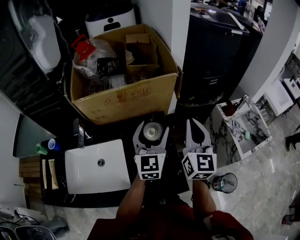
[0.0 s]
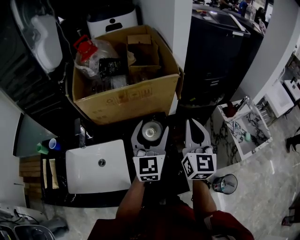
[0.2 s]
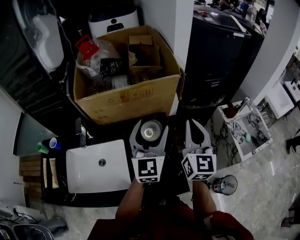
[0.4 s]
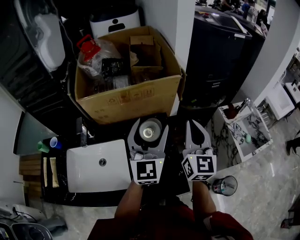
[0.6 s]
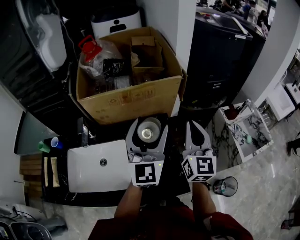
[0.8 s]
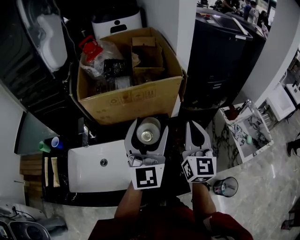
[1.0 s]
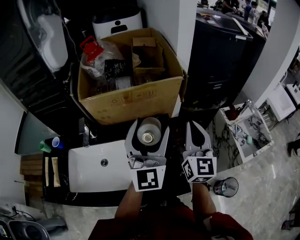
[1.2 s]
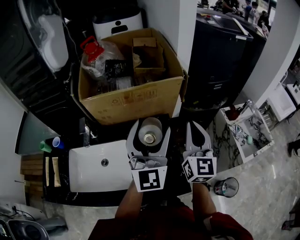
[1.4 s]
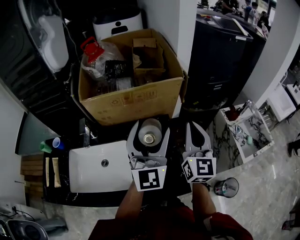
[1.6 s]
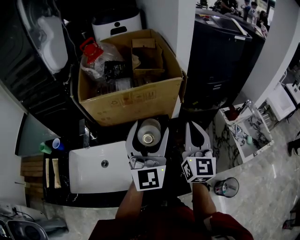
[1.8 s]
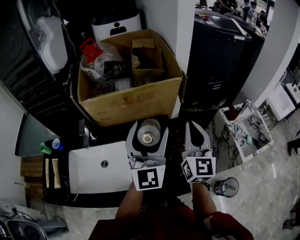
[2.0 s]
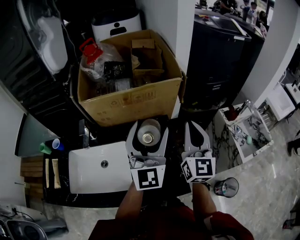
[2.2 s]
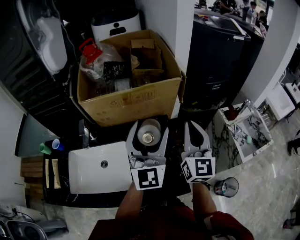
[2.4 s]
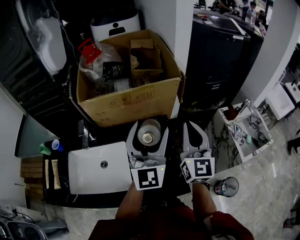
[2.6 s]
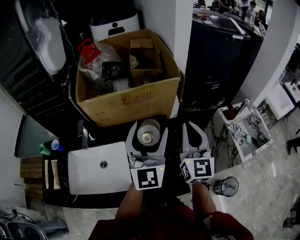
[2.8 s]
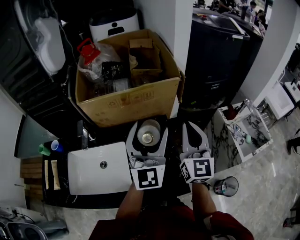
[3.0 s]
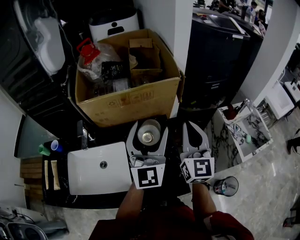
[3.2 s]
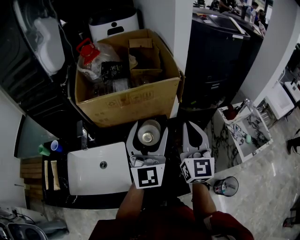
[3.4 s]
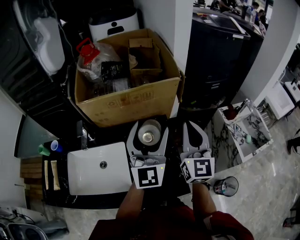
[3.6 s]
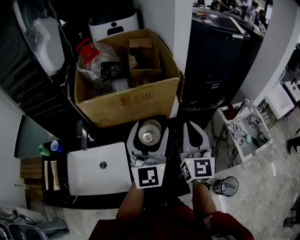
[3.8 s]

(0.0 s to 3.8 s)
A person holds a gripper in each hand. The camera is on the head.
0.0 s - 1.2 s: The left gripper travels upward and backward by some 10 cm, and changes its angle by approximately 20 degrees.
1.2 s - 2.6 s: Neither gripper changes place.
2.6 s - 3.8 s: The grippers move only a little.

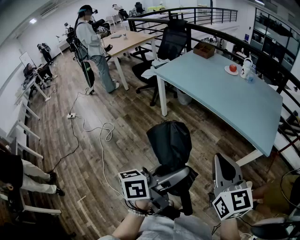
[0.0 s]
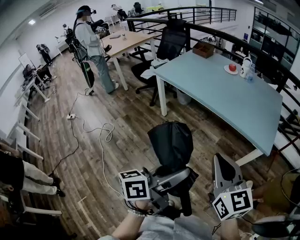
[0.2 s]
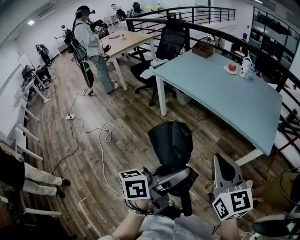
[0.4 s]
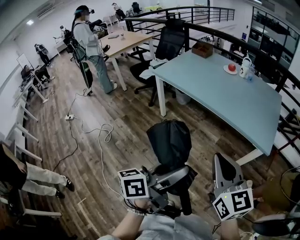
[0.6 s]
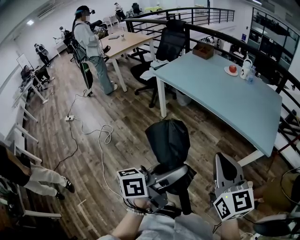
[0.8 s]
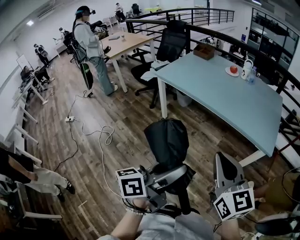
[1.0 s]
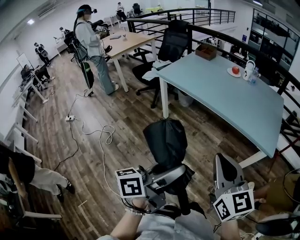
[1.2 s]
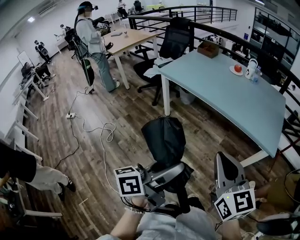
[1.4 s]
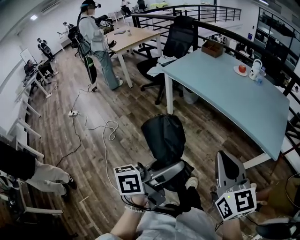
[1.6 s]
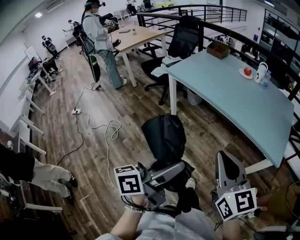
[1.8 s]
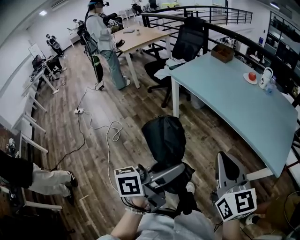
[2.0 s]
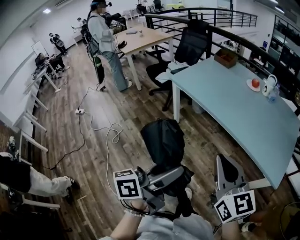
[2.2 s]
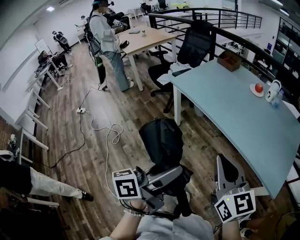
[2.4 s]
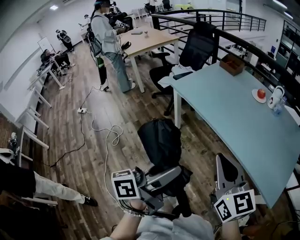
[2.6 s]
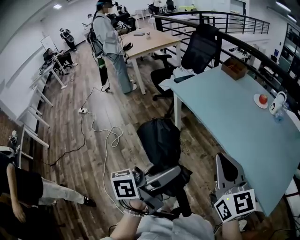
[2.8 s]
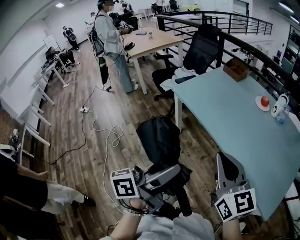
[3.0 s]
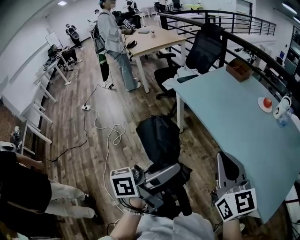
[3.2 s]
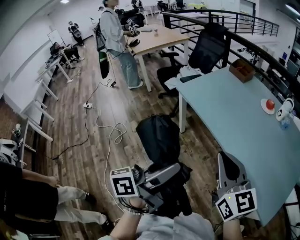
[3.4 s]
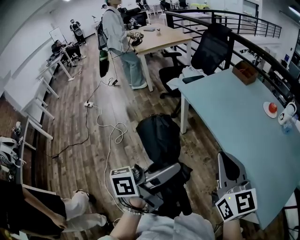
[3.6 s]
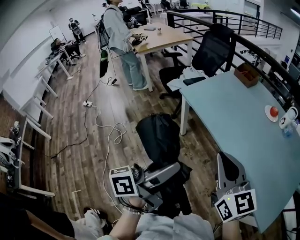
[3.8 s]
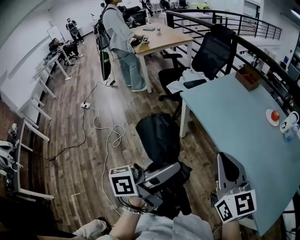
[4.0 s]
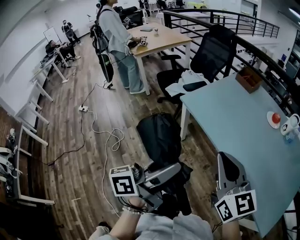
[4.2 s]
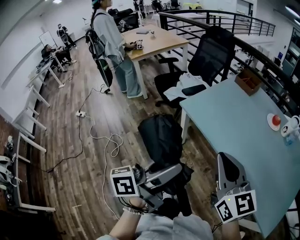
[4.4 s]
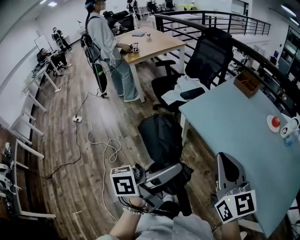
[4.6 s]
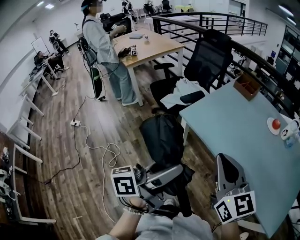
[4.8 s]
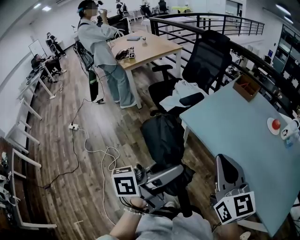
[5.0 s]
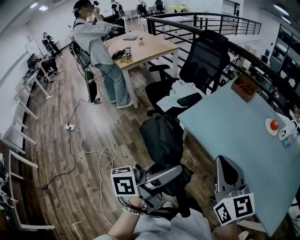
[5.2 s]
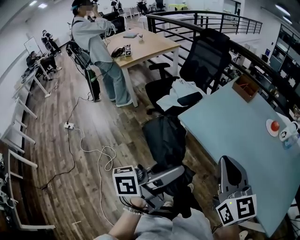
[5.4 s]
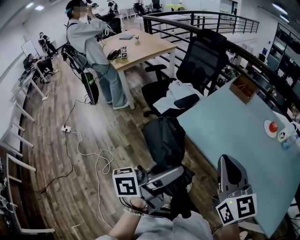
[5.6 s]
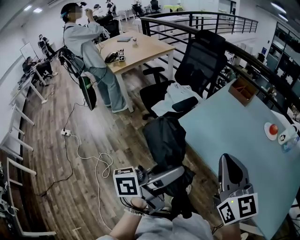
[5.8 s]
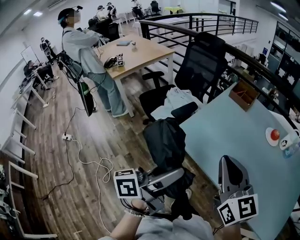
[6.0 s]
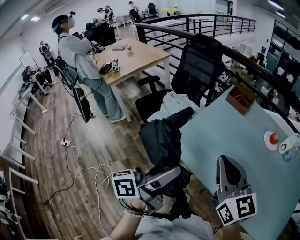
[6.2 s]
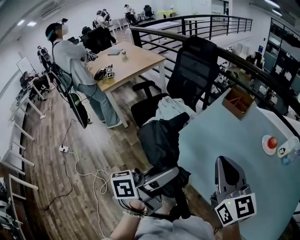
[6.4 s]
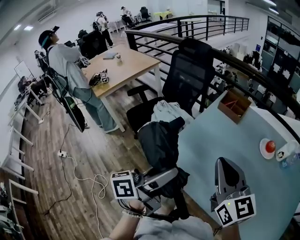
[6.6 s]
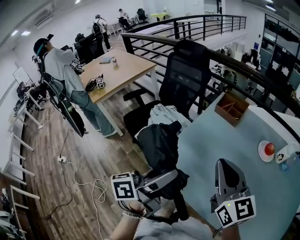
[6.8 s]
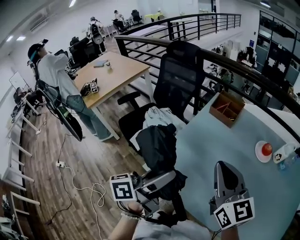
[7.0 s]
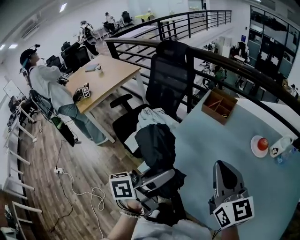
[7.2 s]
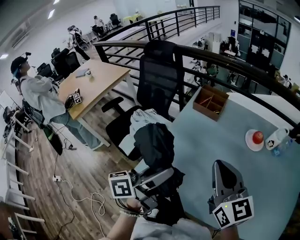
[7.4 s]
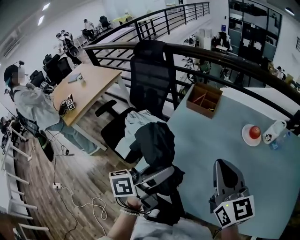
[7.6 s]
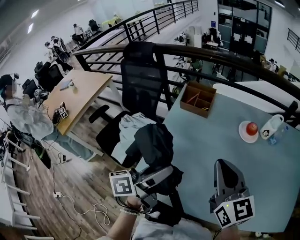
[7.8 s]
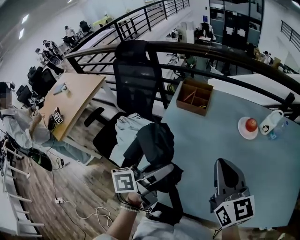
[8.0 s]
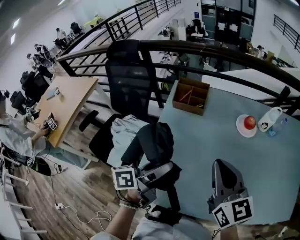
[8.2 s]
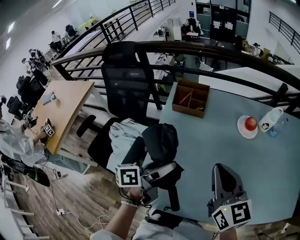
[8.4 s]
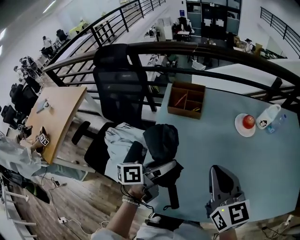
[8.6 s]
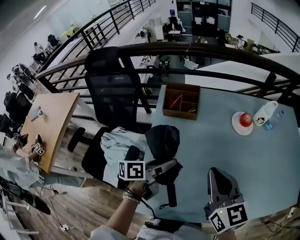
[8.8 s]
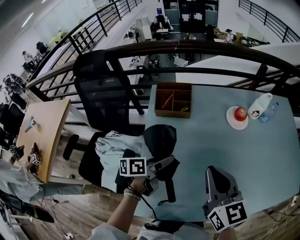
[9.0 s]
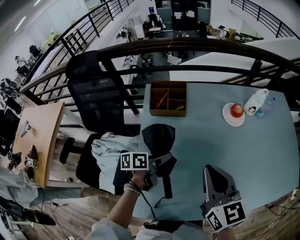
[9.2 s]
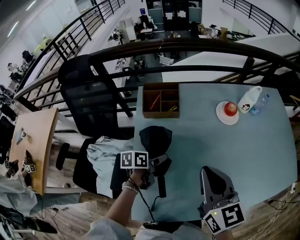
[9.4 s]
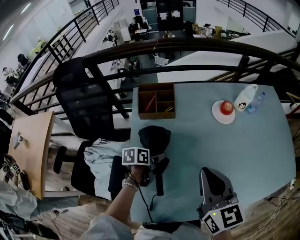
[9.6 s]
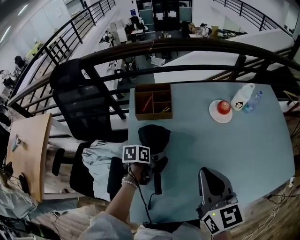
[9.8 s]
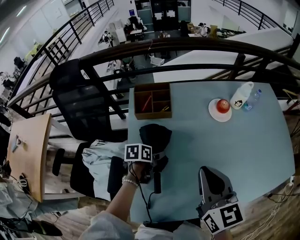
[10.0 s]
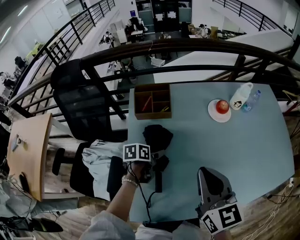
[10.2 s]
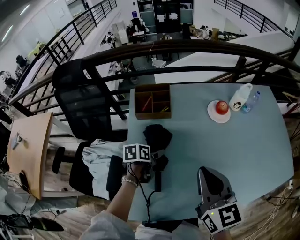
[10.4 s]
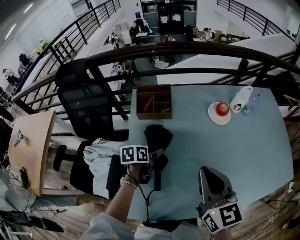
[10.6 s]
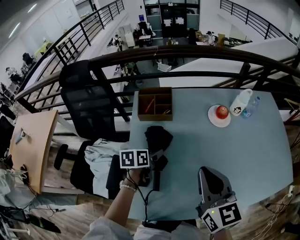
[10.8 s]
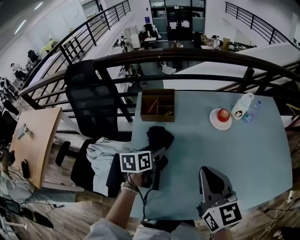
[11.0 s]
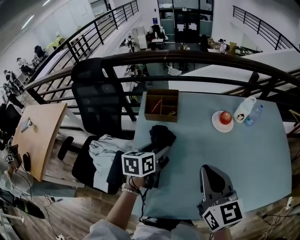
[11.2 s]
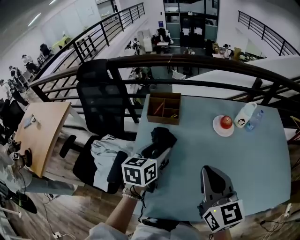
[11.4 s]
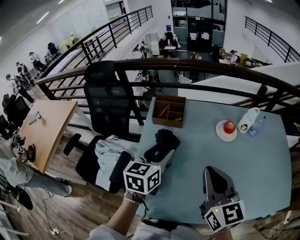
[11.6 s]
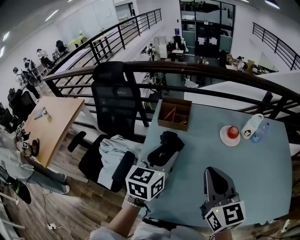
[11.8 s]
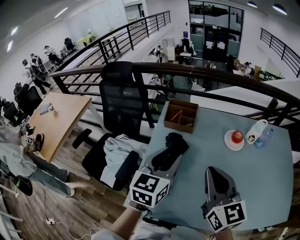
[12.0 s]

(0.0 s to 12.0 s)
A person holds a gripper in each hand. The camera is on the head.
0.0 s - 1.6 s: Both grippers move to the left, about 10 cm.
1.6 s - 3.0 s: Both grippers move forward, some 25 cm.
3.0 s - 4.4 s: Both grippers travel together forward and to the left, about 20 cm.
4.4 s - 6.0 s: Both grippers travel together forward, some 15 cm.
6.0 s - 7.6 s: The left gripper shifts approximately 25 cm forward. Meanwhile the right gripper is displaced forward and to the right by approximately 25 cm.
7.6 s - 9.0 s: The left gripper heads downward and forward, covering approximately 25 cm, and changes its angle by roughly 40 degrees, while the right gripper shifts some 10 cm downward and forward, and rotates approximately 20 degrees.
9.0 s - 10.4 s: The left gripper travels downward by some 10 cm, and changes its angle by roughly 30 degrees.
10.4 s - 12.0 s: The left gripper is displaced upward by roughly 30 cm, tilts its fingers approximately 30 degrees upward, and closes, while the right gripper shifts approximately 5 cm upward.

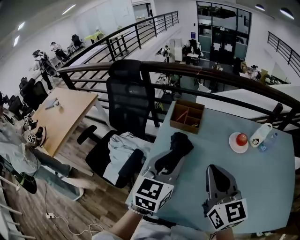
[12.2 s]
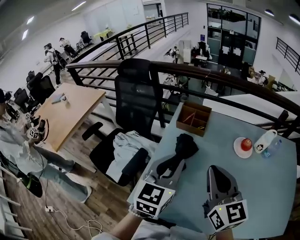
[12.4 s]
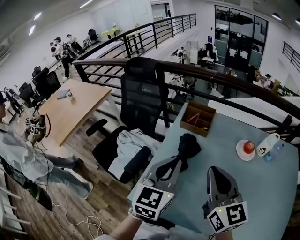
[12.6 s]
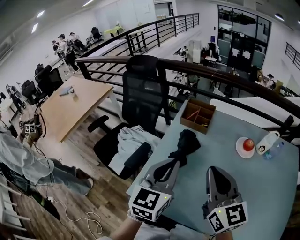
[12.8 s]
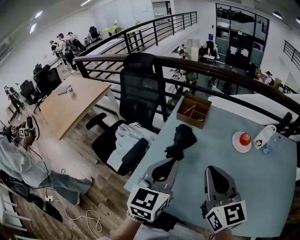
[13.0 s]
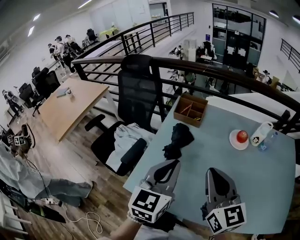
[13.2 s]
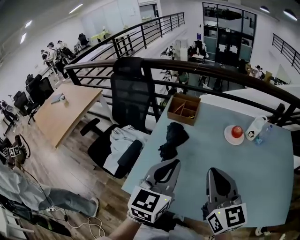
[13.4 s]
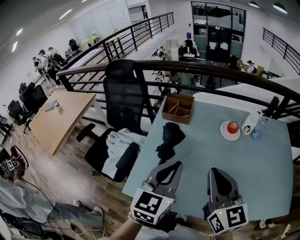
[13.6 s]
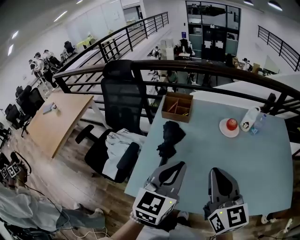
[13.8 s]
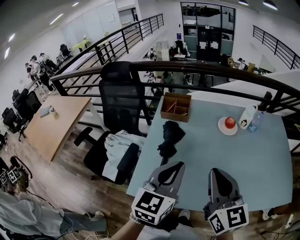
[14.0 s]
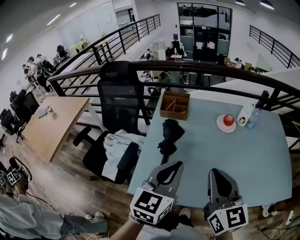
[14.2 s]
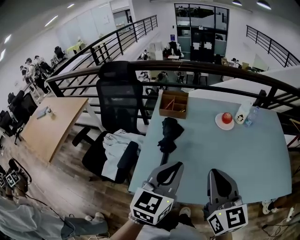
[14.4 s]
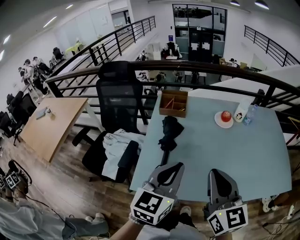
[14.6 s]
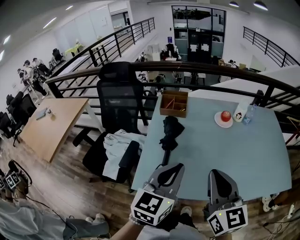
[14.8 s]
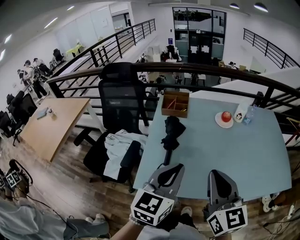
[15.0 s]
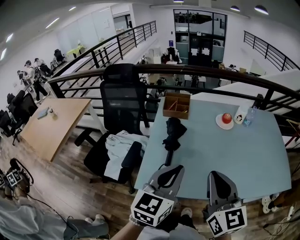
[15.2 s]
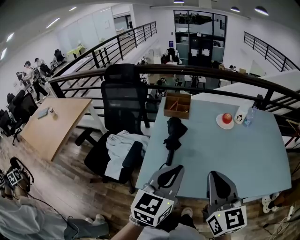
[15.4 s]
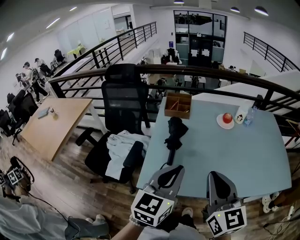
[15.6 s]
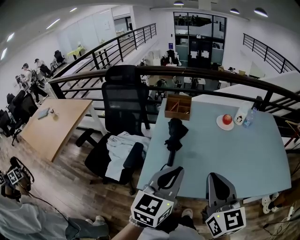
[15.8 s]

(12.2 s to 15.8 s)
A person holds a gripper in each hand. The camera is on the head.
12.2 s - 14.0 s: Both grippers travel together backward, approximately 10 cm. The left gripper closes.
14.0 s - 15.8 s: The two grippers go roughly 10 cm backward and to the left.

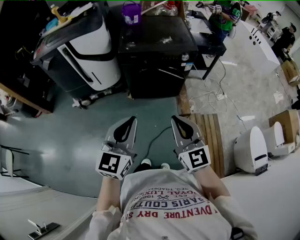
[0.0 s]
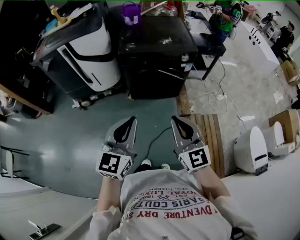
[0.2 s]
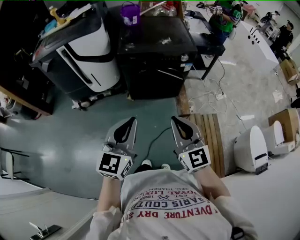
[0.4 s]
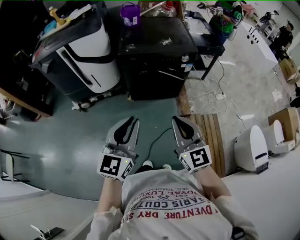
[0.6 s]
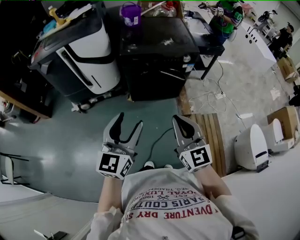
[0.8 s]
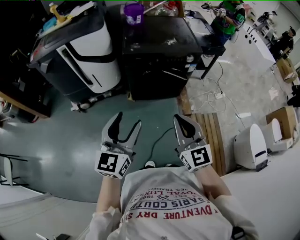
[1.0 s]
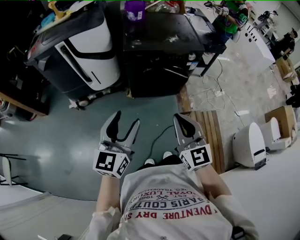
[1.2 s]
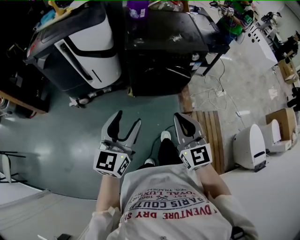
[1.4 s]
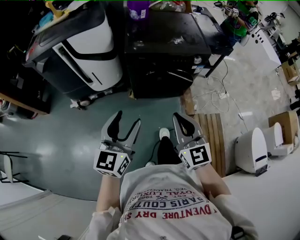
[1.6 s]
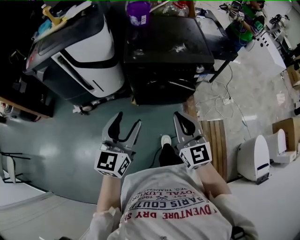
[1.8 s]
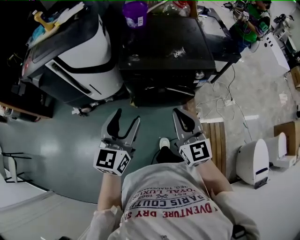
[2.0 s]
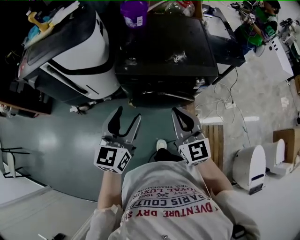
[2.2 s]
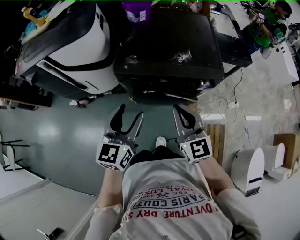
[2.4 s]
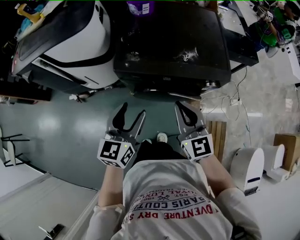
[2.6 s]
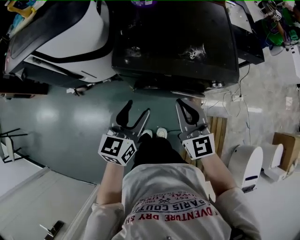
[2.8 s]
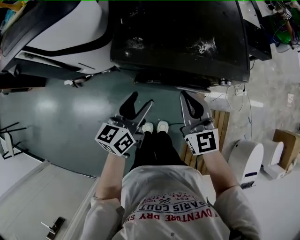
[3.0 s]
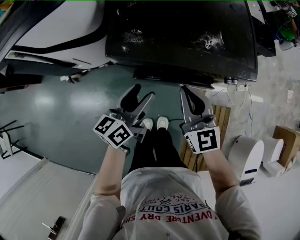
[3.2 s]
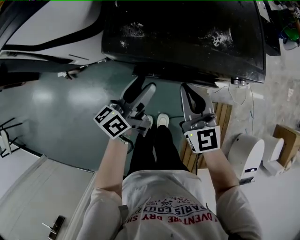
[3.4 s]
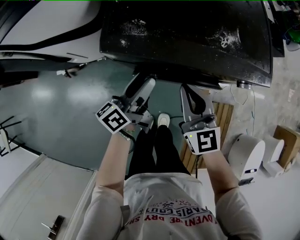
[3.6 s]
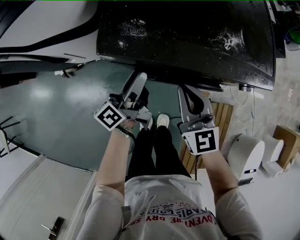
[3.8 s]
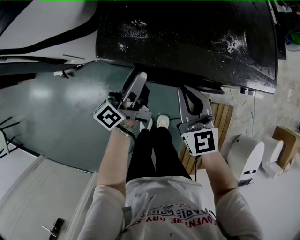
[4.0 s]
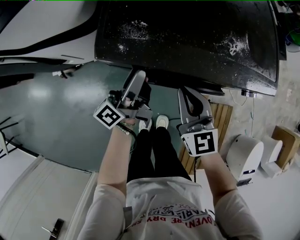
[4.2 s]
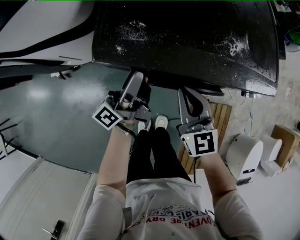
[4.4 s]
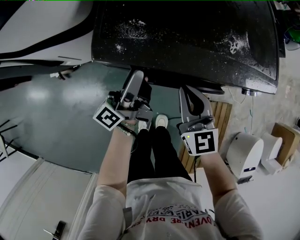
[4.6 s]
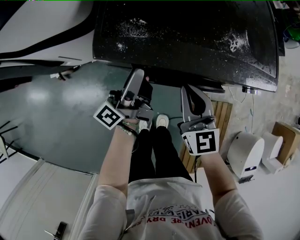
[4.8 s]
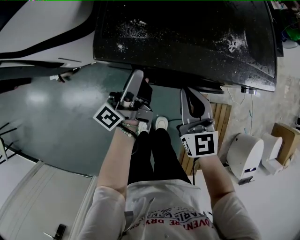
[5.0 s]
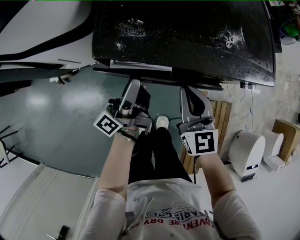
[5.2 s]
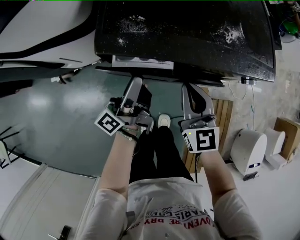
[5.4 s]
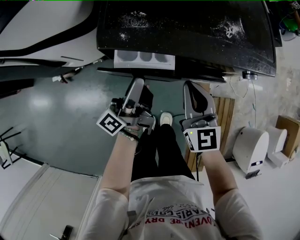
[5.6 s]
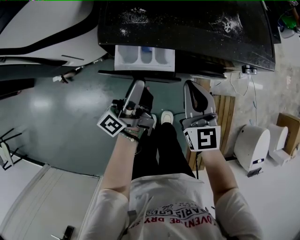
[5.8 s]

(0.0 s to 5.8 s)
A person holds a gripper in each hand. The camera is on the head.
0.0 s - 1.4 s: Both grippers travel together to the left and forward, about 10 cm. The left gripper opens its fingers.
1.4 s - 2.8 s: The right gripper goes about 35 cm forward. Meanwhile the left gripper goes about 35 cm forward and downward.
2.8 s - 4.4 s: The two grippers go about 20 cm downward and forward. The left gripper rolls counterclockwise, seen from behind, by roughly 60 degrees.
4.4 s - 5.8 s: The left gripper is displaced backward by some 10 cm.
